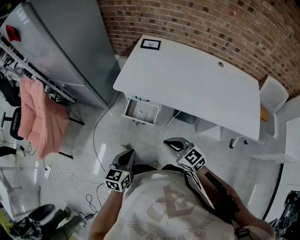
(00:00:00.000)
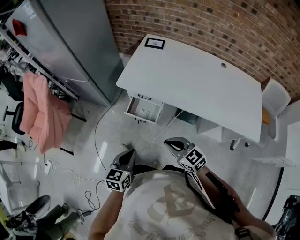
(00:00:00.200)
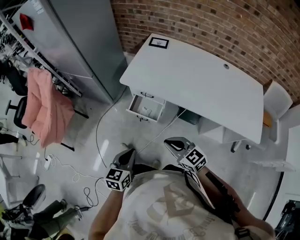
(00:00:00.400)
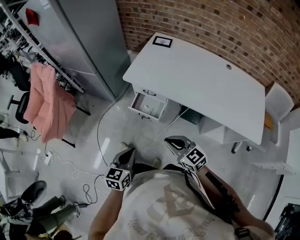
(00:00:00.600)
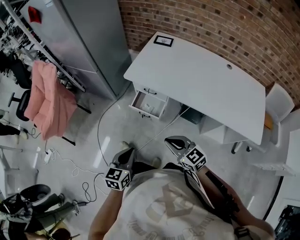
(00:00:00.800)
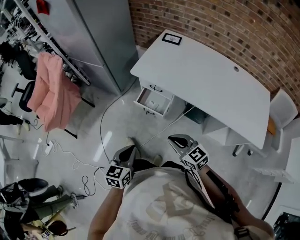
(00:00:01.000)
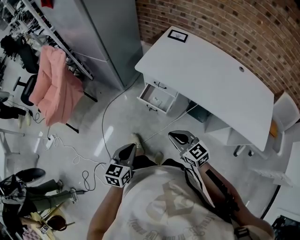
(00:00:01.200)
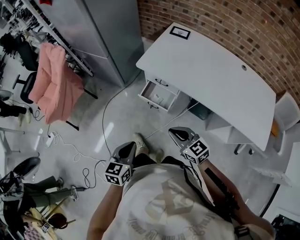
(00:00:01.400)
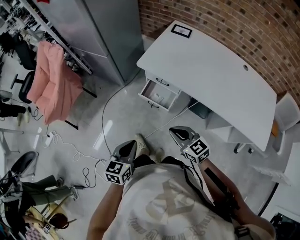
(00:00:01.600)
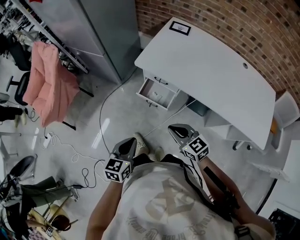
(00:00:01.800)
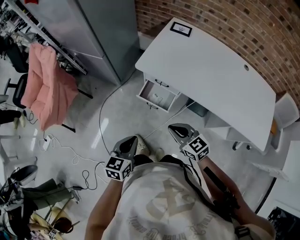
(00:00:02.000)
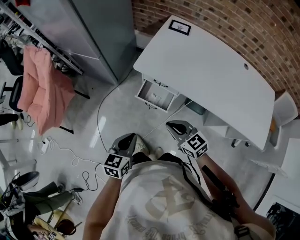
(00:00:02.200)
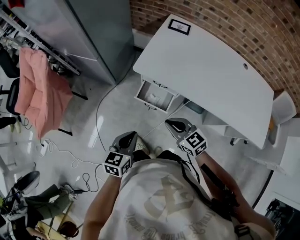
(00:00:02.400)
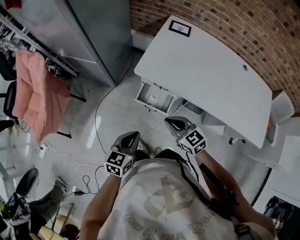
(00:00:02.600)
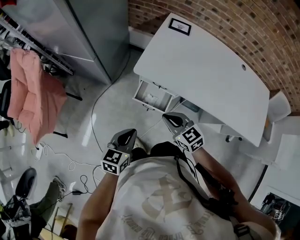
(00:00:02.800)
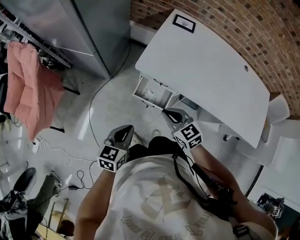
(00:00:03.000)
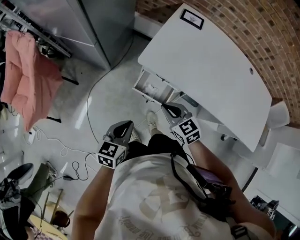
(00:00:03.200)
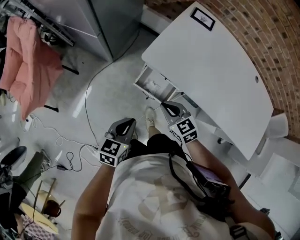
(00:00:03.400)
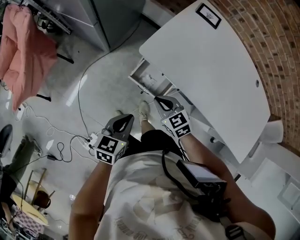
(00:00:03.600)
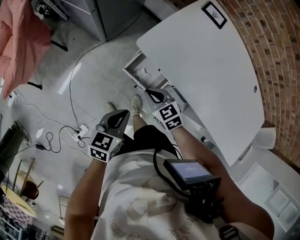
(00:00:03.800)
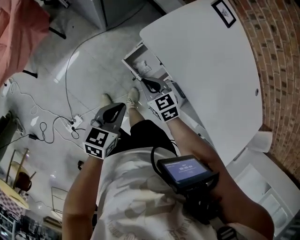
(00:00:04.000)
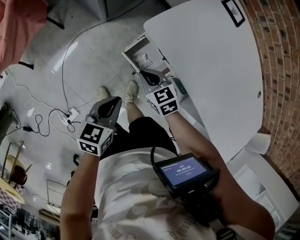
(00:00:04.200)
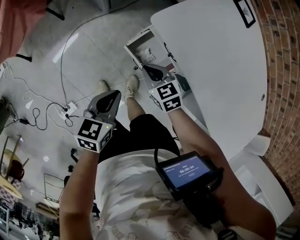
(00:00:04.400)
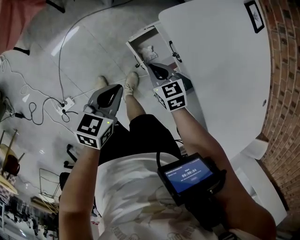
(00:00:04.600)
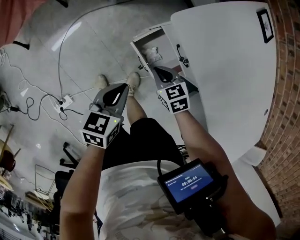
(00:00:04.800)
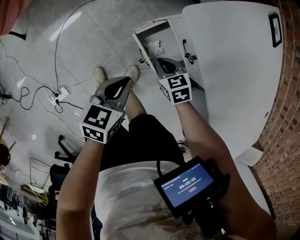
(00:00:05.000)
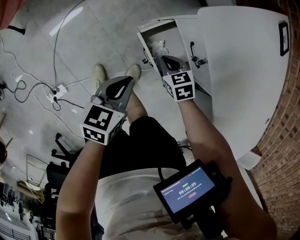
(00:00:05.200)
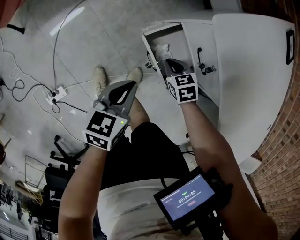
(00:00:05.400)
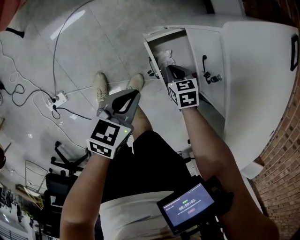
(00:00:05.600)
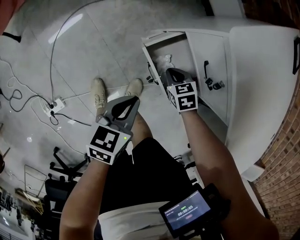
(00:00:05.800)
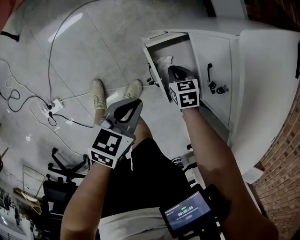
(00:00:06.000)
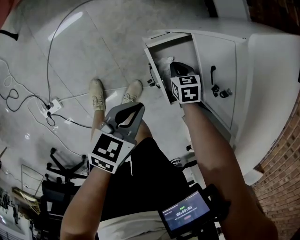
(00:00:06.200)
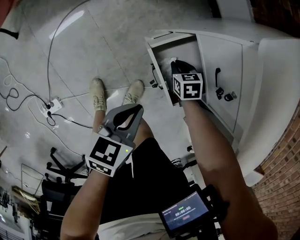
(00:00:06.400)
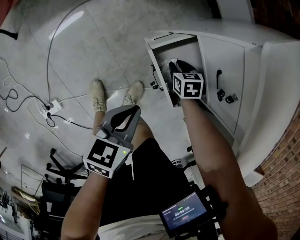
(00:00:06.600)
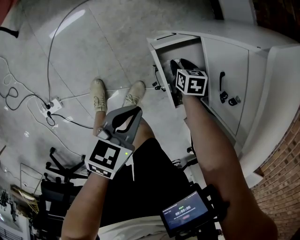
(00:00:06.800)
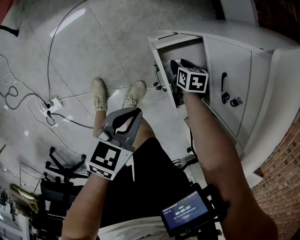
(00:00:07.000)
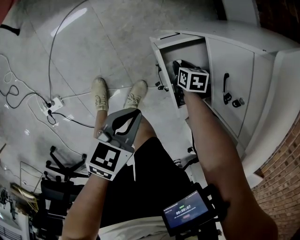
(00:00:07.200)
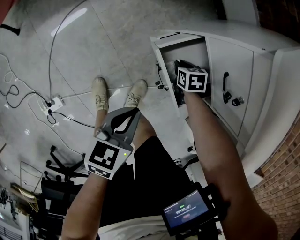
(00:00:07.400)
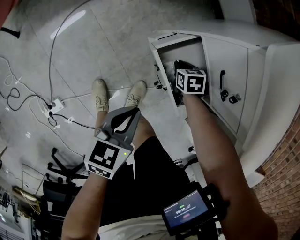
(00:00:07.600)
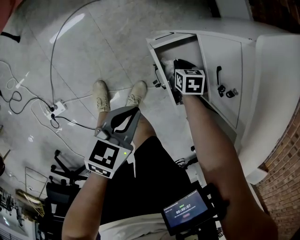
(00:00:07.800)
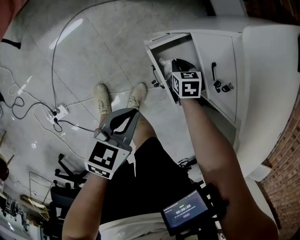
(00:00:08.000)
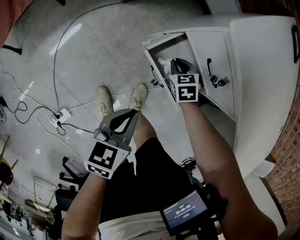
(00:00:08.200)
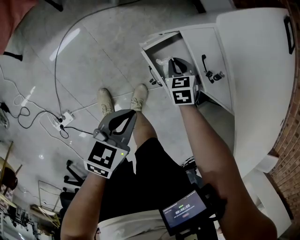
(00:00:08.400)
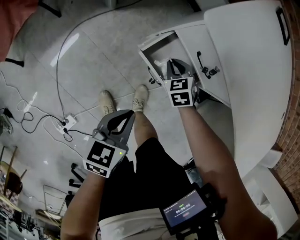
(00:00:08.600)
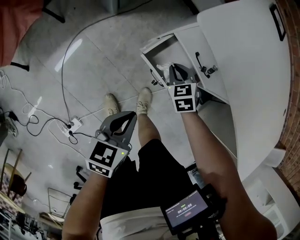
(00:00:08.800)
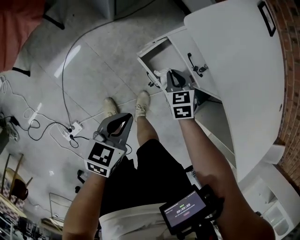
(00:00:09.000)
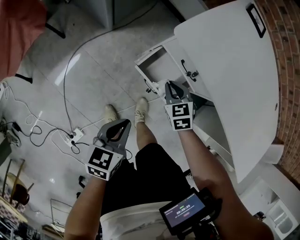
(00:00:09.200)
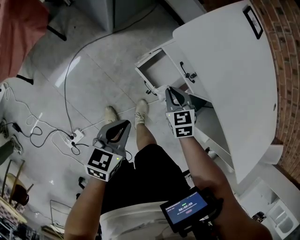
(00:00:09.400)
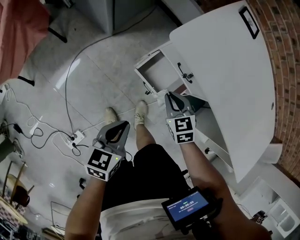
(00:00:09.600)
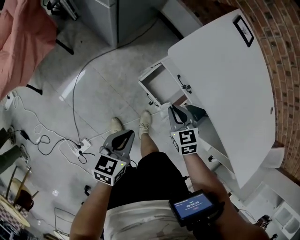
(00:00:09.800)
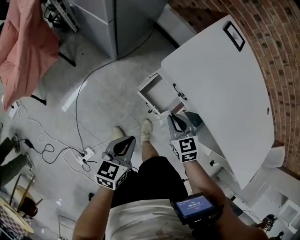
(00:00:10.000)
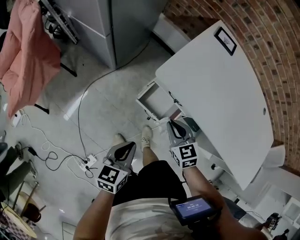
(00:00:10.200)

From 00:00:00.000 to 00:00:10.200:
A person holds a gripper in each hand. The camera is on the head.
From 00:00:00.000 to 00:00:01.400: The left gripper shifts some 10 cm backward and to the left.
From 00:00:01.400 to 00:00:03.000: Both grippers move forward, roughly 20 cm.
From 00:00:03.000 to 00:00:04.400: The left gripper heads downward, covering some 15 cm, and changes its angle by roughly 30 degrees. Meanwhile the right gripper is displaced downward and forward by about 25 cm, and swivels approximately 20 degrees.
From 00:00:04.400 to 00:00:05.800: Both grippers move downward, about 20 cm. The right gripper rotates about 20 degrees.
From 00:00:05.800 to 00:00:07.200: The right gripper heads downward, covering about 10 cm, and opens up.
From 00:00:07.200 to 00:00:08.800: The left gripper moves upward, some 10 cm; the right gripper shifts approximately 20 cm upward, turns by approximately 30 degrees, and closes up.
From 00:00:08.800 to 00:00:10.200: The right gripper is displaced upward by roughly 25 cm, and turns by roughly 20 degrees. Meanwhile the left gripper moves upward, roughly 15 cm.

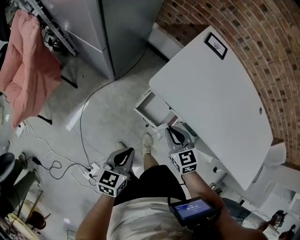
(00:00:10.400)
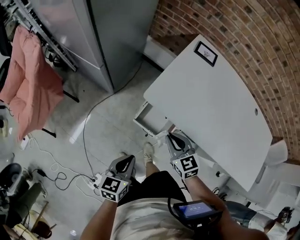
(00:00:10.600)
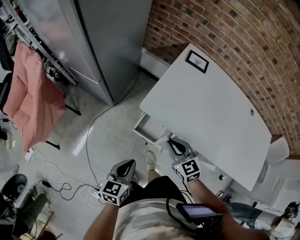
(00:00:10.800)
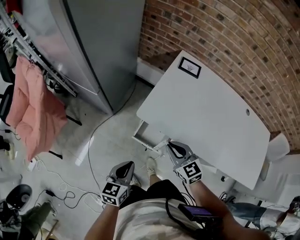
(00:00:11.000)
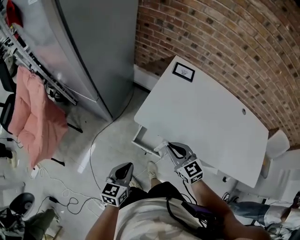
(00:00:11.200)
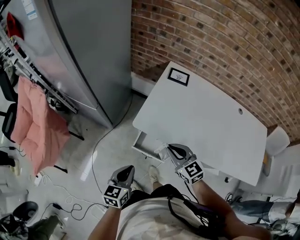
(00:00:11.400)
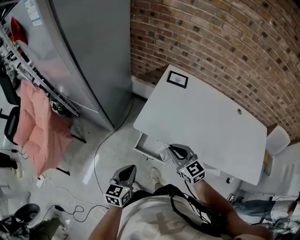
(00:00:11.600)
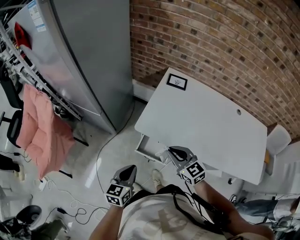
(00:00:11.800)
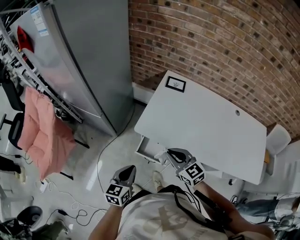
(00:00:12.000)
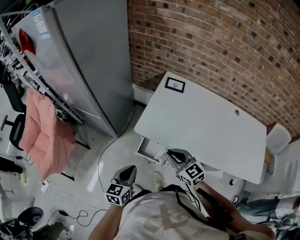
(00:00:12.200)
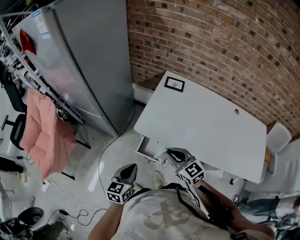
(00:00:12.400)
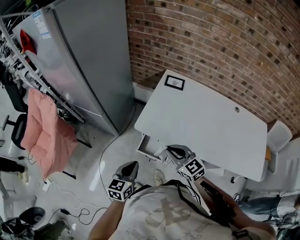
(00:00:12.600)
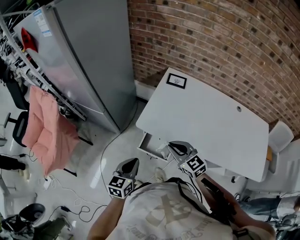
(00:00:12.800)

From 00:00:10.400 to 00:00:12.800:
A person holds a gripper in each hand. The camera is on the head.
From 00:00:10.400 to 00:00:11.600: Both grippers move upward, some 15 cm.
From 00:00:11.600 to 00:00:12.800: The grippers stay close to where they were, moving slightly.

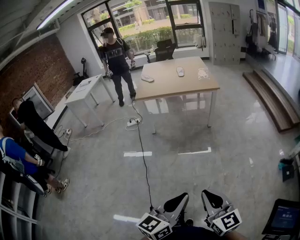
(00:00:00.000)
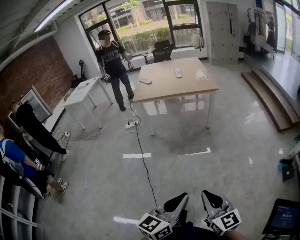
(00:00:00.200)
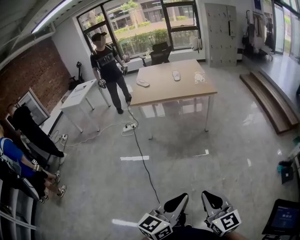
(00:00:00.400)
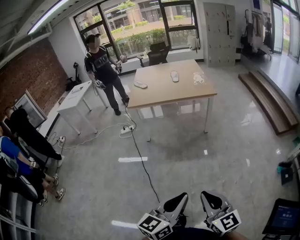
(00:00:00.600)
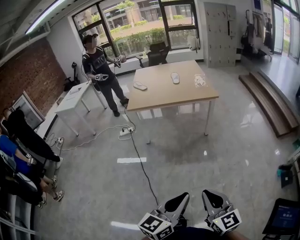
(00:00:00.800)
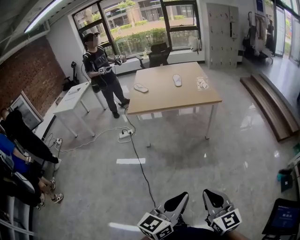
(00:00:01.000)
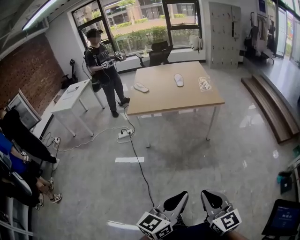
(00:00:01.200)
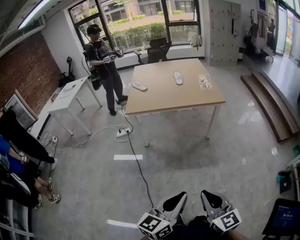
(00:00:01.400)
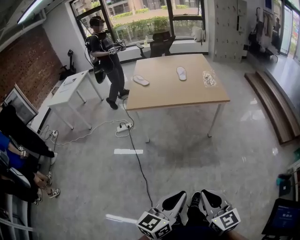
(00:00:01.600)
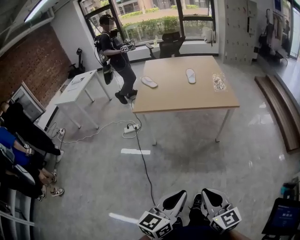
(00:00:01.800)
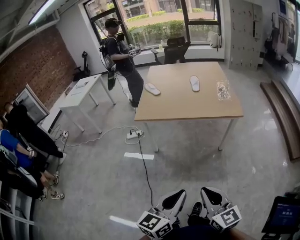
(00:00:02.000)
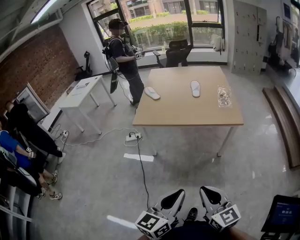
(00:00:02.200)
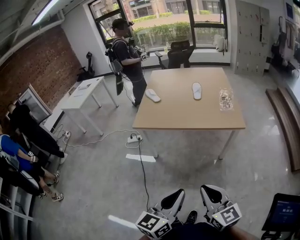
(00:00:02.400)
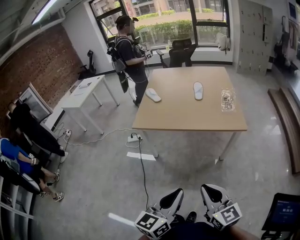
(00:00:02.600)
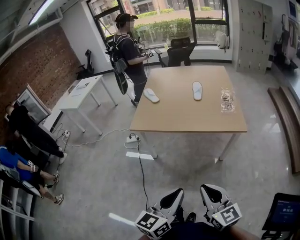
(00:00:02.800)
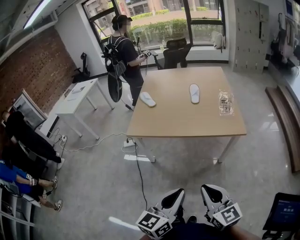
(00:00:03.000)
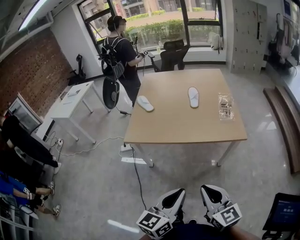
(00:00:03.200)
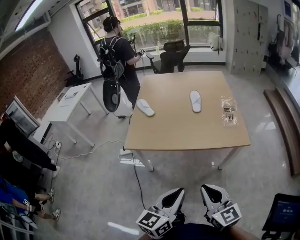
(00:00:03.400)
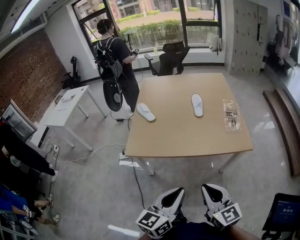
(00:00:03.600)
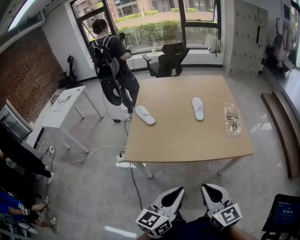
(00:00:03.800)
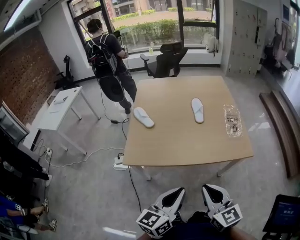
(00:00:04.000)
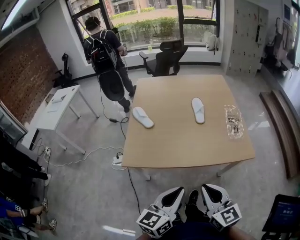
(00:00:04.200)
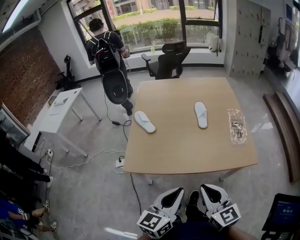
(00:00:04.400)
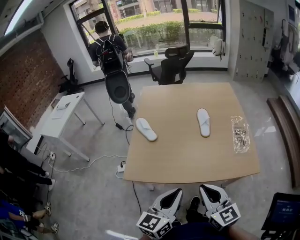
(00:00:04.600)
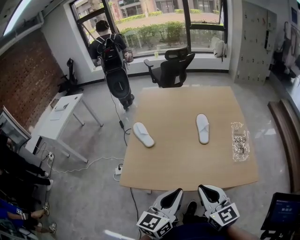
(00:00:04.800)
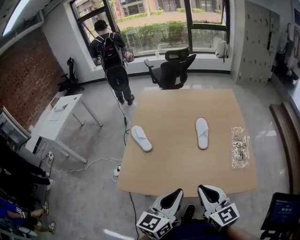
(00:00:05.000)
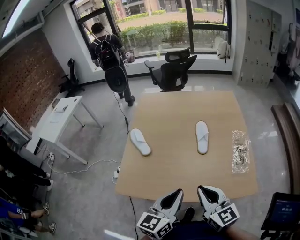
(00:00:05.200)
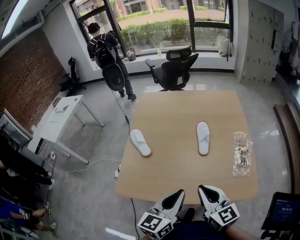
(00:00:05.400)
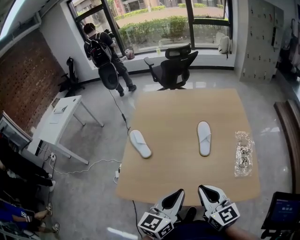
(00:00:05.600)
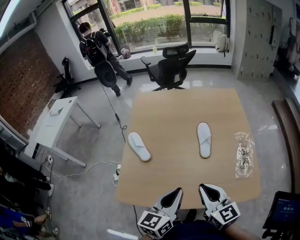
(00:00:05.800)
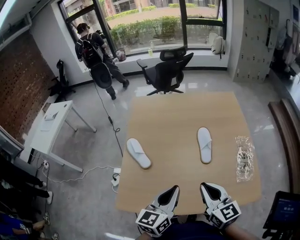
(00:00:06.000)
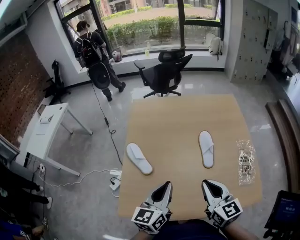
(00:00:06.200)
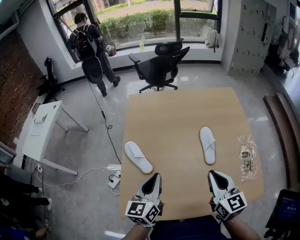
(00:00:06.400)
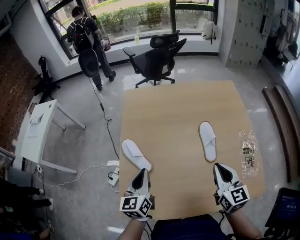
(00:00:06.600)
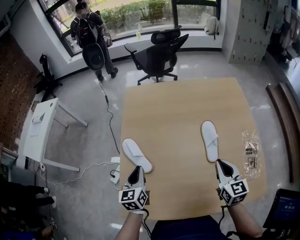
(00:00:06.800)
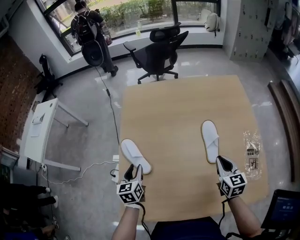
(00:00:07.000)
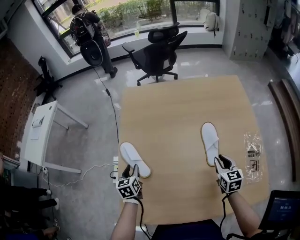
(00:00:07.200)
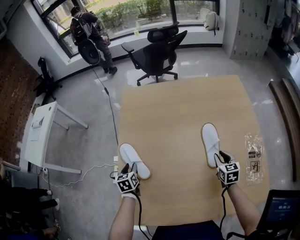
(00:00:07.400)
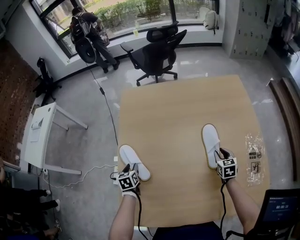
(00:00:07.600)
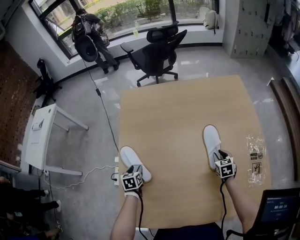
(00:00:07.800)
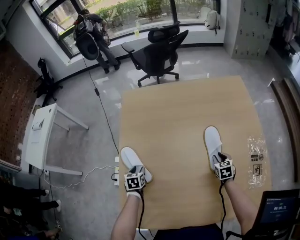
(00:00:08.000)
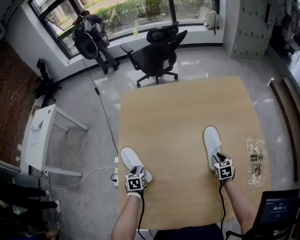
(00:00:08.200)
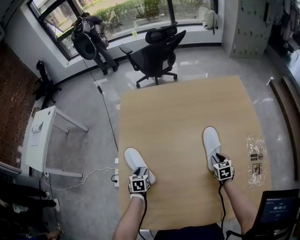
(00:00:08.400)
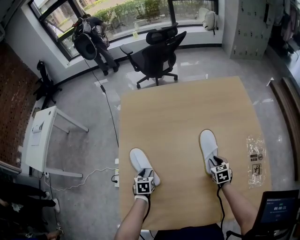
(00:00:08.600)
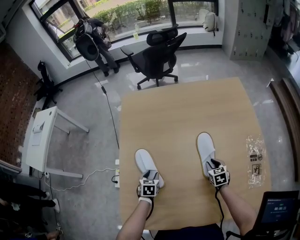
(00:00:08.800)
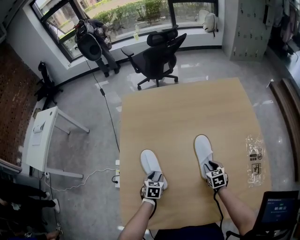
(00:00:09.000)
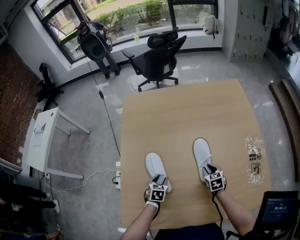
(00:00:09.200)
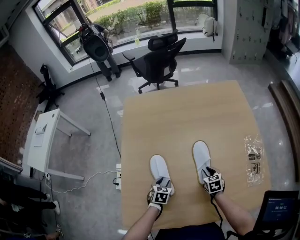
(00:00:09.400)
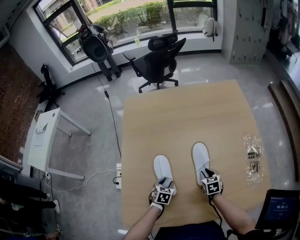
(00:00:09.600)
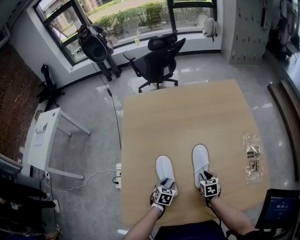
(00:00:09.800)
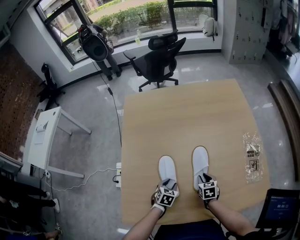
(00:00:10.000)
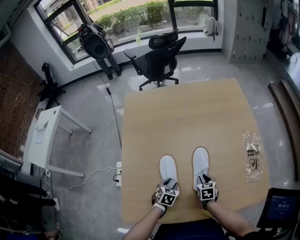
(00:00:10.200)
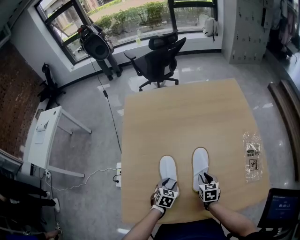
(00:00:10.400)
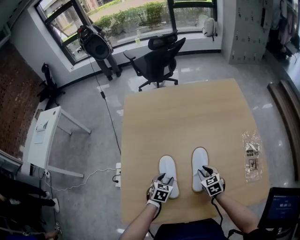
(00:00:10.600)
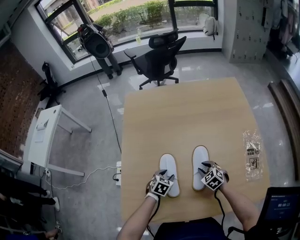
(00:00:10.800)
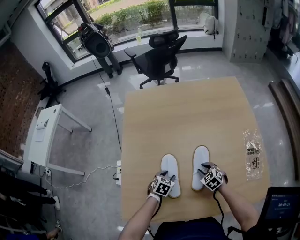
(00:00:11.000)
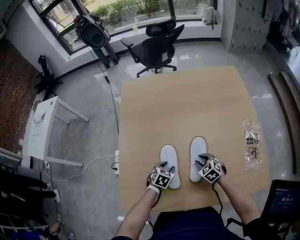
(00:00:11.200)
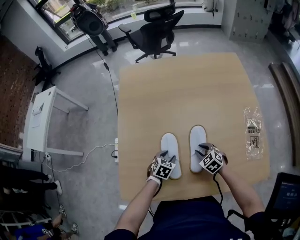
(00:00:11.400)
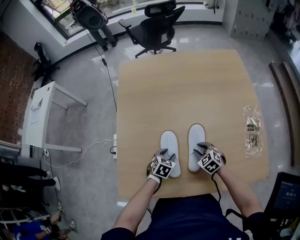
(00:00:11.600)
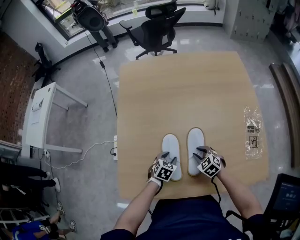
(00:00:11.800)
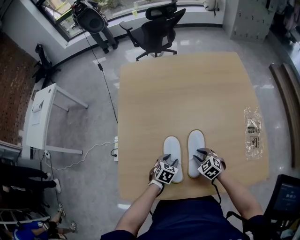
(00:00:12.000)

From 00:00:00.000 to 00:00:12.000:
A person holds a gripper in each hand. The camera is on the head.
From 00:00:00.000 to 00:00:01.600: Both grippers move forward, roughly 30 cm.
From 00:00:01.600 to 00:00:03.000: The two grippers go roughly 30 cm forward.
From 00:00:03.000 to 00:00:04.400: The left gripper travels forward by roughly 30 cm; the right gripper moves forward and to the left, roughly 30 cm.
From 00:00:04.400 to 00:00:06.000: The two grippers go some 30 cm forward.
From 00:00:06.000 to 00:00:07.600: The left gripper shifts about 50 cm downward, to the left and forward, tips its fingers downward by about 40 degrees, and opens its fingers. The right gripper heads downward, forward and to the right, covering some 40 cm, points its fingers approximately 30 degrees further downward, and opens up.
From 00:00:07.600 to 00:00:09.000: The right gripper is displaced to the left by approximately 5 cm. Meanwhile the left gripper shifts approximately 15 cm to the right and downward, and swivels about 30 degrees.
From 00:00:09.000 to 00:00:10.400: The left gripper travels to the right and backward by some 10 cm, while the right gripper is displaced backward by approximately 10 cm.
From 00:00:10.400 to 00:00:12.000: The right gripper rotates around the line of its fingers by some 40 degrees, counterclockwise from behind.
